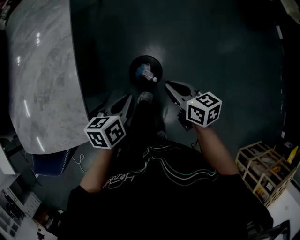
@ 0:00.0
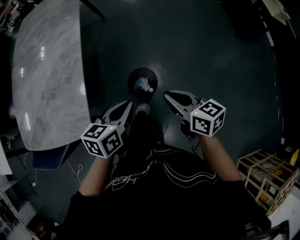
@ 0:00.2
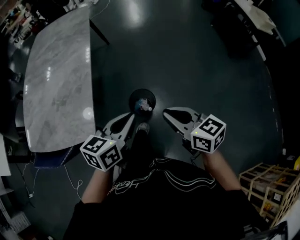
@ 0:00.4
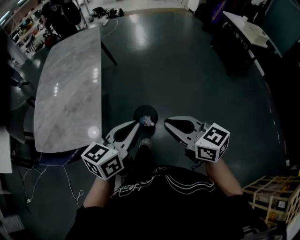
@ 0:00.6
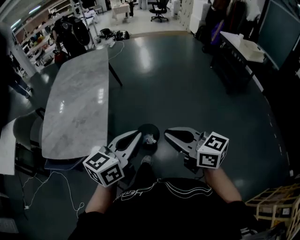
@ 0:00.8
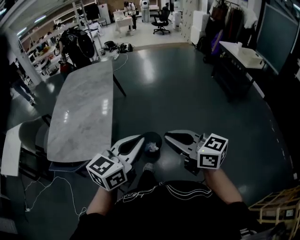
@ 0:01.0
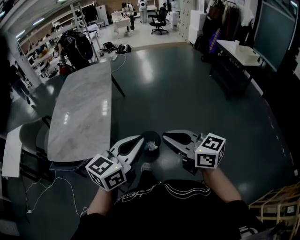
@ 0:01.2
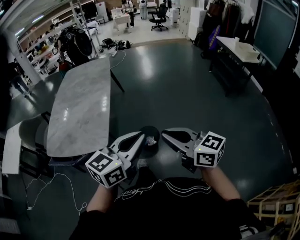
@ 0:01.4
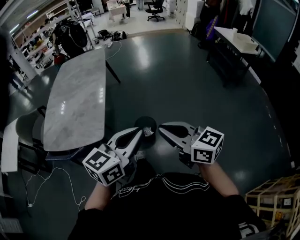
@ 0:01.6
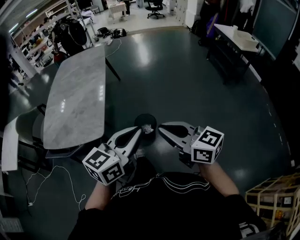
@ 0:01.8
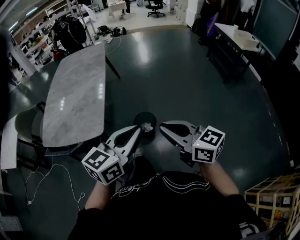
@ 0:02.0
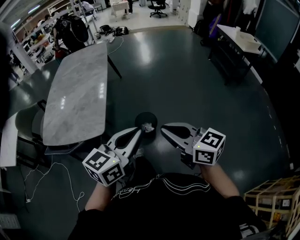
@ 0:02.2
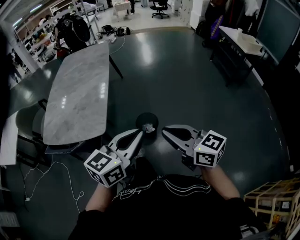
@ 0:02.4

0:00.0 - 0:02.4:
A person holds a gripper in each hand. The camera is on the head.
0:00.0 - 0:01.2: The grippers both shift upward and backward by approximately 40 cm. The left gripper tilts its fingers roughly 30 degrees upward. Meanwhile the right gripper turns by about 40 degrees.
0:01.2 - 0:02.4: The right gripper shifts by approximately 5 cm.

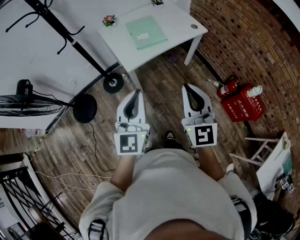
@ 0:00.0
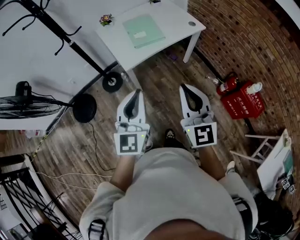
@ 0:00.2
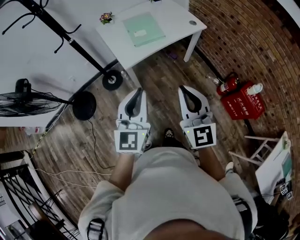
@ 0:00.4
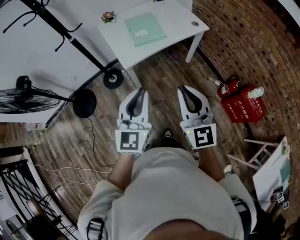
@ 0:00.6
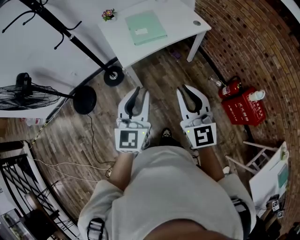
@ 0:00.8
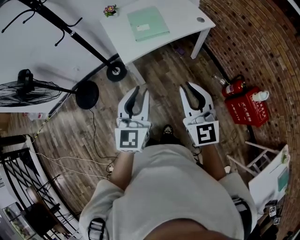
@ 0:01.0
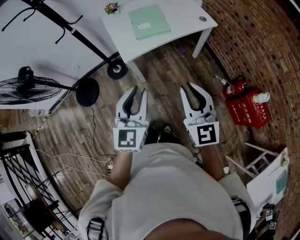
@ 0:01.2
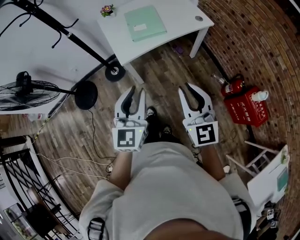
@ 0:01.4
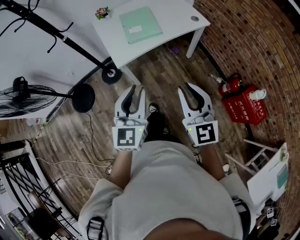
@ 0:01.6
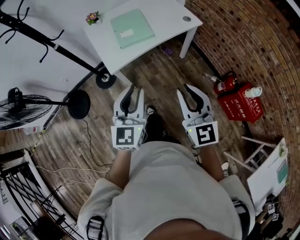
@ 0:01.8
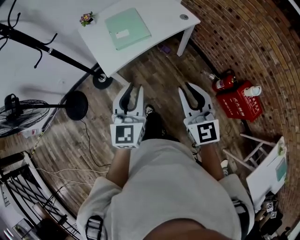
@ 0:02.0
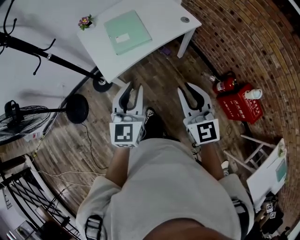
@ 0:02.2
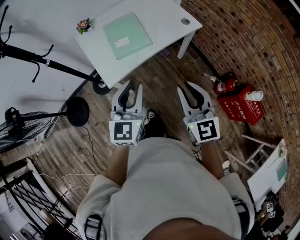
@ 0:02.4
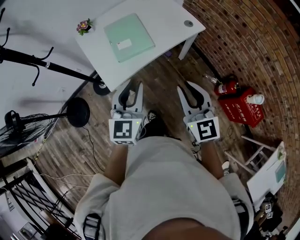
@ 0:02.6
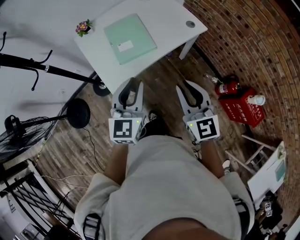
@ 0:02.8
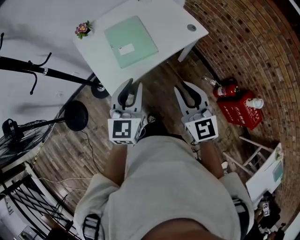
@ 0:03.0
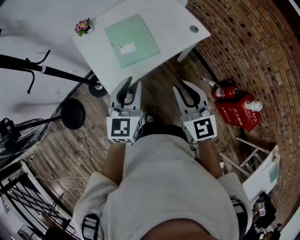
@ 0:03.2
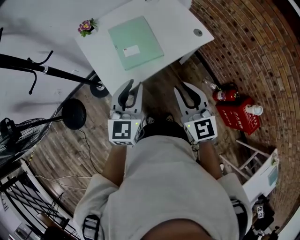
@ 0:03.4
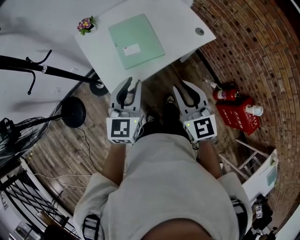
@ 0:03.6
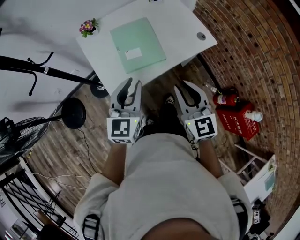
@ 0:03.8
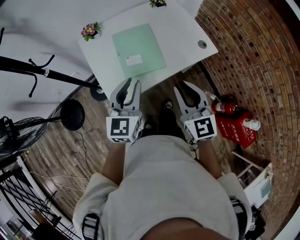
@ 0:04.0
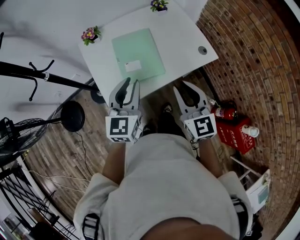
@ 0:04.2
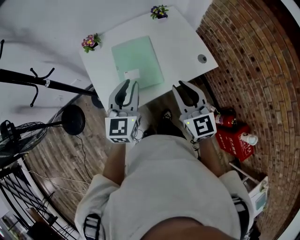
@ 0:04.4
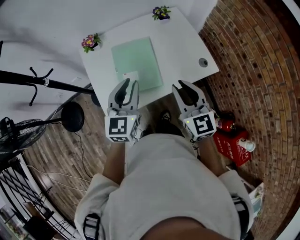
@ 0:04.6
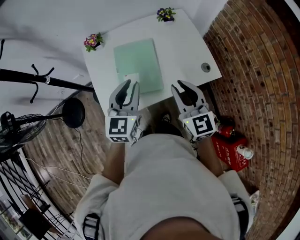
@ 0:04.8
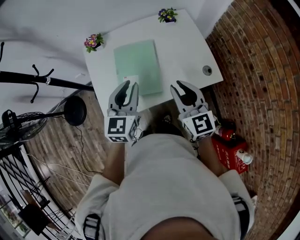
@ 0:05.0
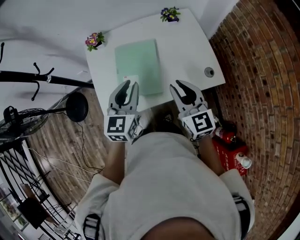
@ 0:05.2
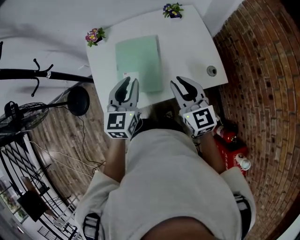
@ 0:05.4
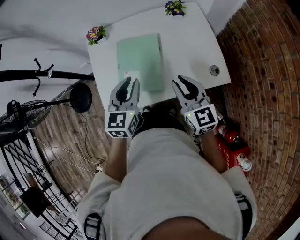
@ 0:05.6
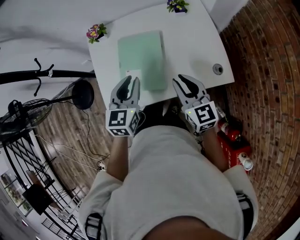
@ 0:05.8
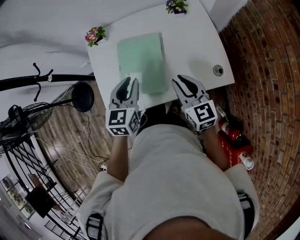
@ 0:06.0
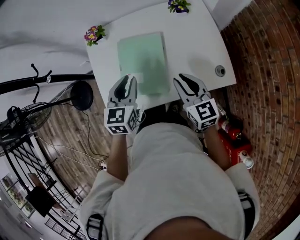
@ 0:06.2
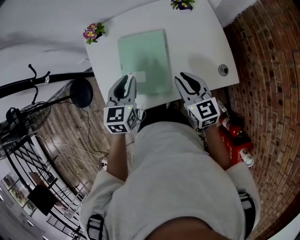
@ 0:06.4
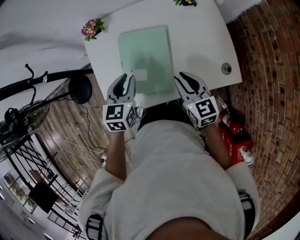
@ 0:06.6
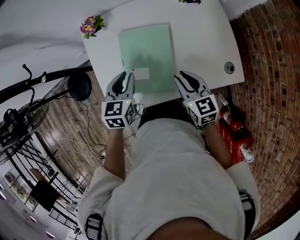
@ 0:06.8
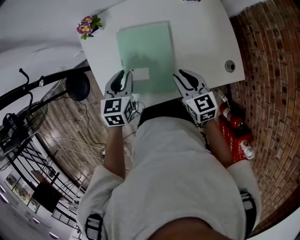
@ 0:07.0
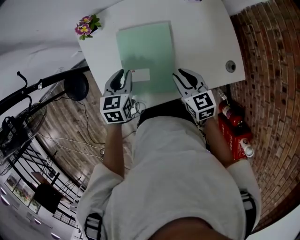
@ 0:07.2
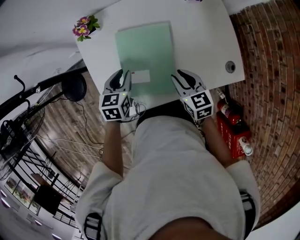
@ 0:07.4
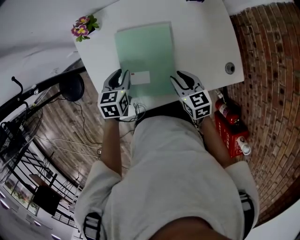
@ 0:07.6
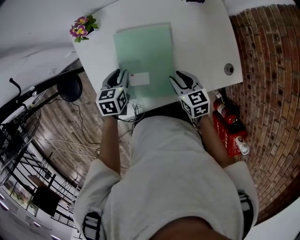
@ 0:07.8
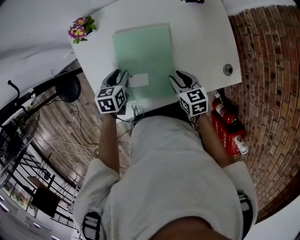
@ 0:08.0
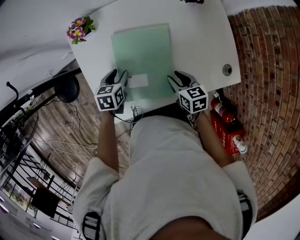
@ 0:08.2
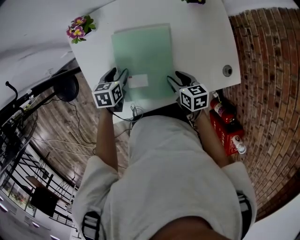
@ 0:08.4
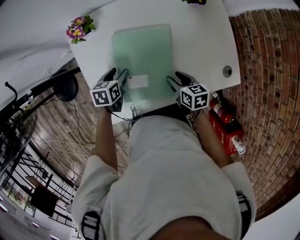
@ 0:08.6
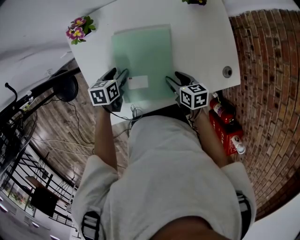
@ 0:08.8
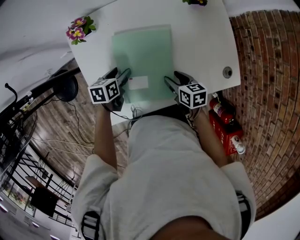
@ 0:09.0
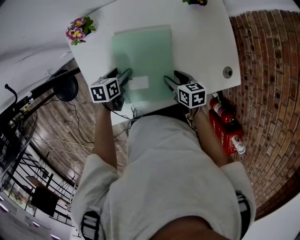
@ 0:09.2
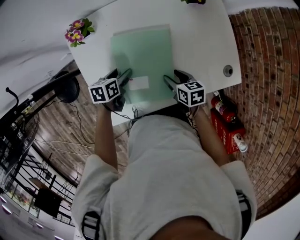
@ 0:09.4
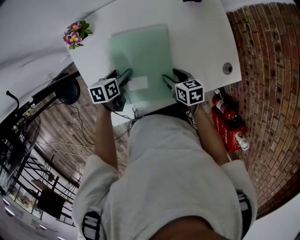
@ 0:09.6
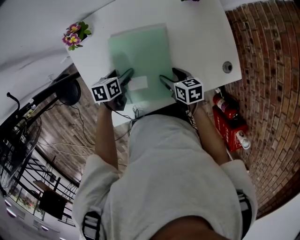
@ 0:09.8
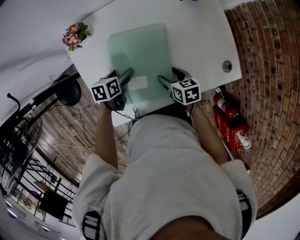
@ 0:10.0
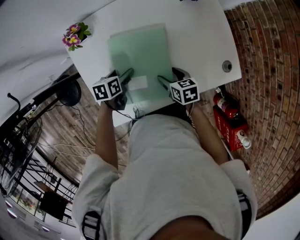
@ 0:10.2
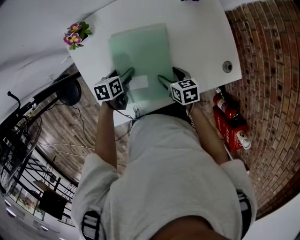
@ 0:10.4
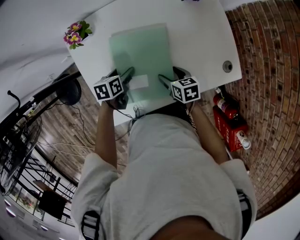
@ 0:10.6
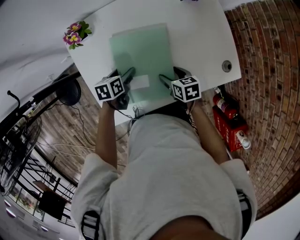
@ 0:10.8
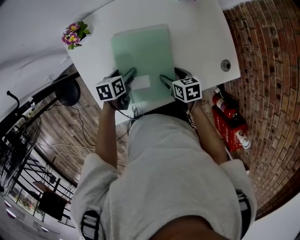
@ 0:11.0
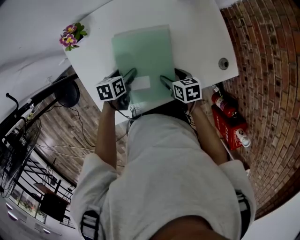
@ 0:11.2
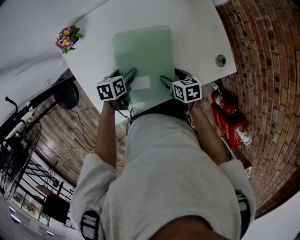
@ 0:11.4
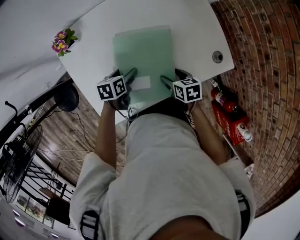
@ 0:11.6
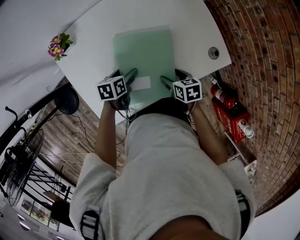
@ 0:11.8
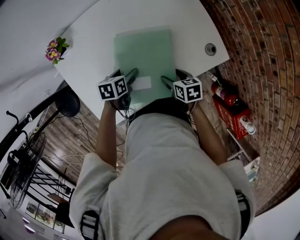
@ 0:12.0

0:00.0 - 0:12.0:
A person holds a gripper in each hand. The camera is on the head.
0:00.0 - 0:01.6: The left gripper shifts about 15 cm to the right, downward and forward. Meanwhile the right gripper goes roughly 10 cm to the right and downward.
0:01.6 - 0:03.0: Both grippers travel together forward, roughly 25 cm.
0:03.0 - 0:04.4: The grippers both shift forward by about 20 cm.
0:04.4 - 0:06.0: The right gripper is displaced forward, downward and to the right by roughly 20 cm, and swivels about 20 degrees; the left gripper travels forward and downward by some 15 cm, and rotates about 20 degrees.
0:06.0 - 0:07.6: The left gripper shifts roughly 20 cm downward, forward and to the left, and turns by some 20 degrees. The right gripper moves downward and forward, roughly 15 cm, and swivels approximately 20 degrees.
0:07.6 - 0:09.0: The grippers both shift downward by about 5 cm. The left gripper swivels roughly 20 degrees, and opens up; the right gripper rotates approximately 20 degrees.
0:09.0 - 0:10.4: The grippers move only a little.
0:10.4 - 0:12.0: The left gripper goes approximately 10 cm to the right, while the right gripper travels to the right and backward by roughly 10 cm.

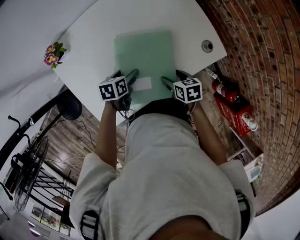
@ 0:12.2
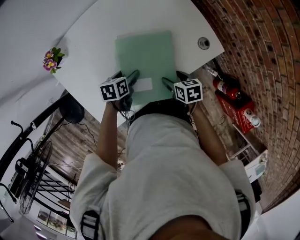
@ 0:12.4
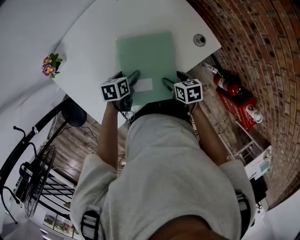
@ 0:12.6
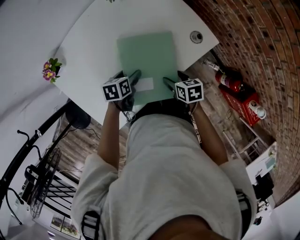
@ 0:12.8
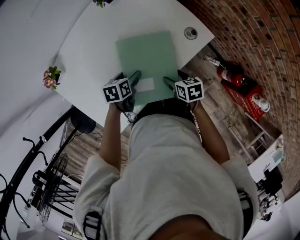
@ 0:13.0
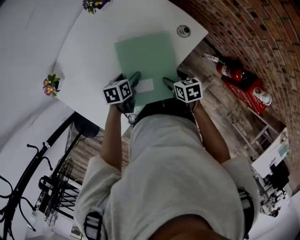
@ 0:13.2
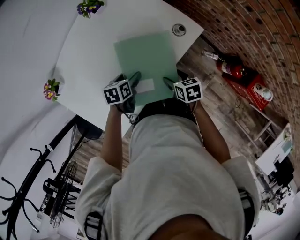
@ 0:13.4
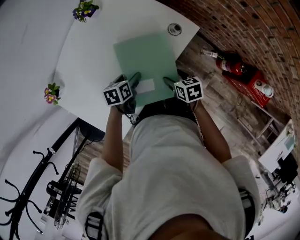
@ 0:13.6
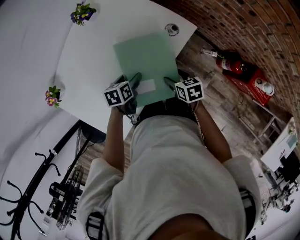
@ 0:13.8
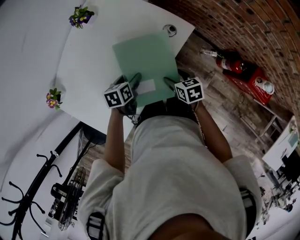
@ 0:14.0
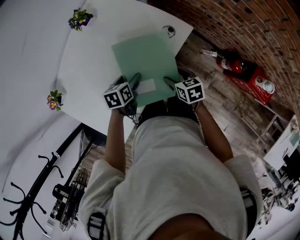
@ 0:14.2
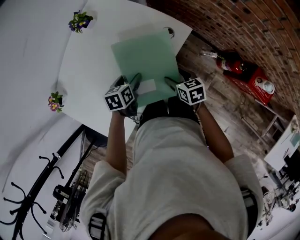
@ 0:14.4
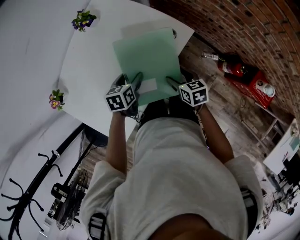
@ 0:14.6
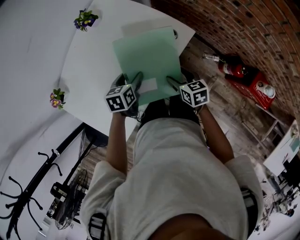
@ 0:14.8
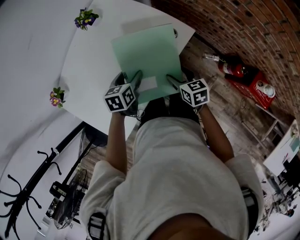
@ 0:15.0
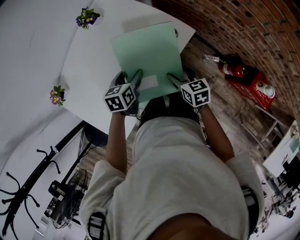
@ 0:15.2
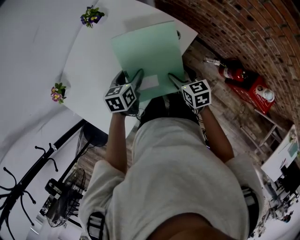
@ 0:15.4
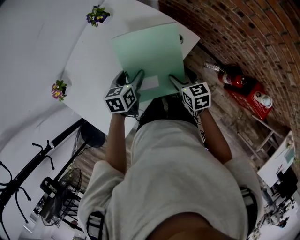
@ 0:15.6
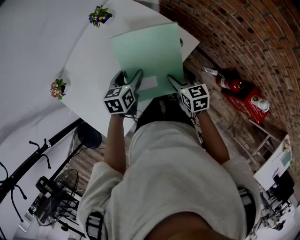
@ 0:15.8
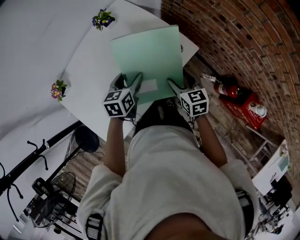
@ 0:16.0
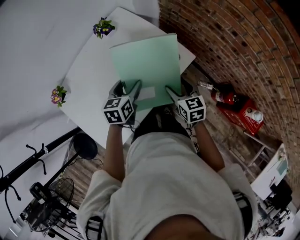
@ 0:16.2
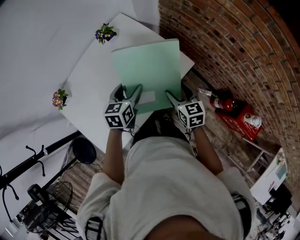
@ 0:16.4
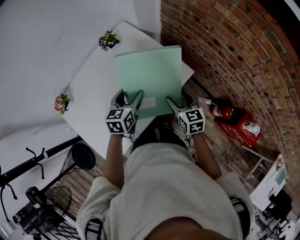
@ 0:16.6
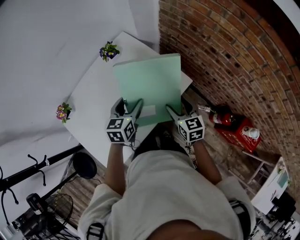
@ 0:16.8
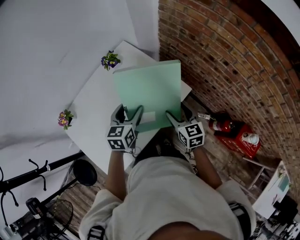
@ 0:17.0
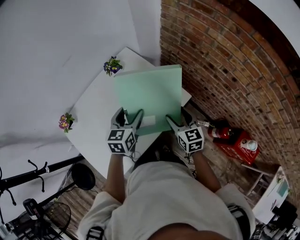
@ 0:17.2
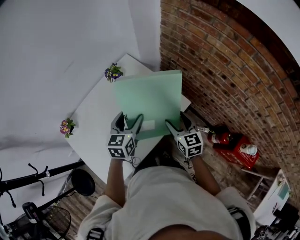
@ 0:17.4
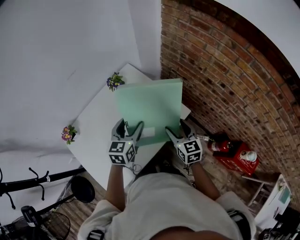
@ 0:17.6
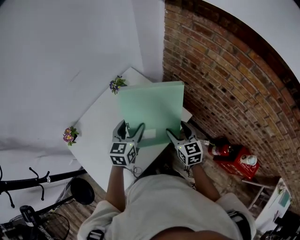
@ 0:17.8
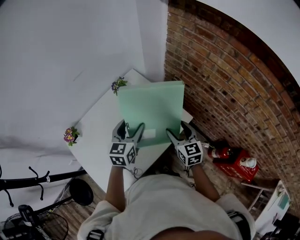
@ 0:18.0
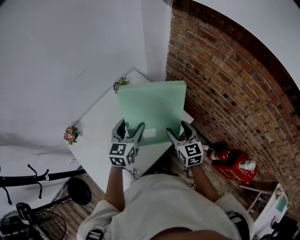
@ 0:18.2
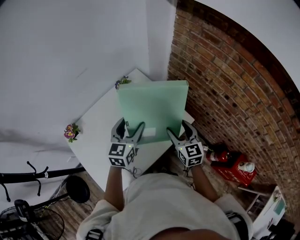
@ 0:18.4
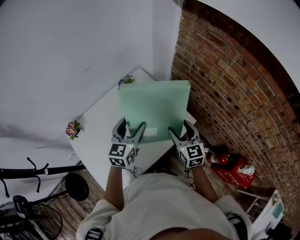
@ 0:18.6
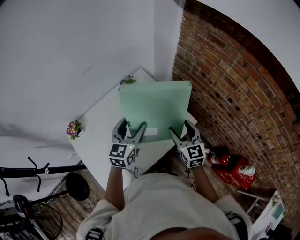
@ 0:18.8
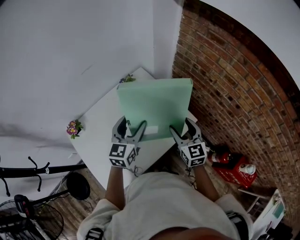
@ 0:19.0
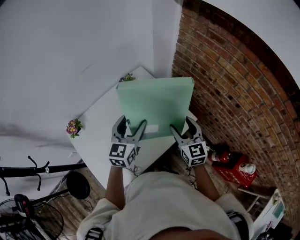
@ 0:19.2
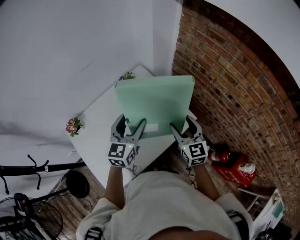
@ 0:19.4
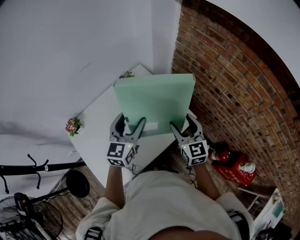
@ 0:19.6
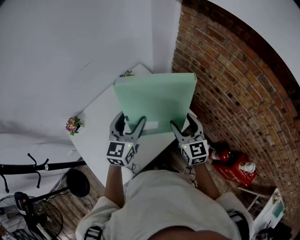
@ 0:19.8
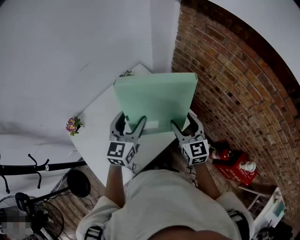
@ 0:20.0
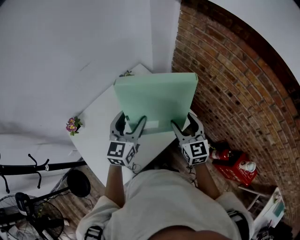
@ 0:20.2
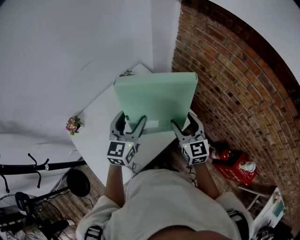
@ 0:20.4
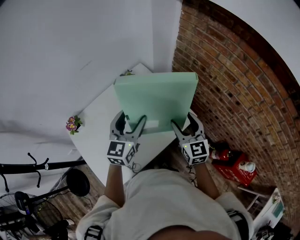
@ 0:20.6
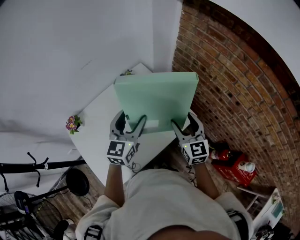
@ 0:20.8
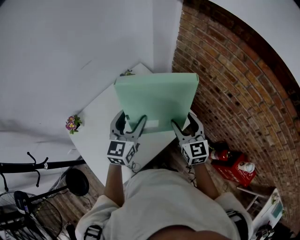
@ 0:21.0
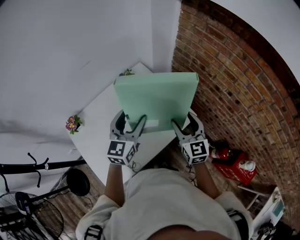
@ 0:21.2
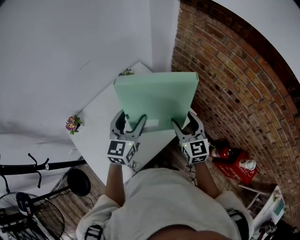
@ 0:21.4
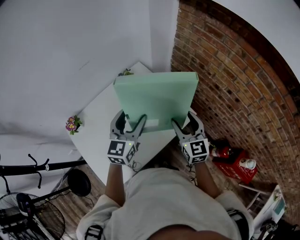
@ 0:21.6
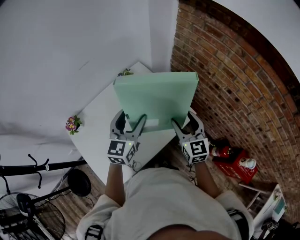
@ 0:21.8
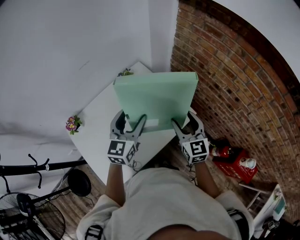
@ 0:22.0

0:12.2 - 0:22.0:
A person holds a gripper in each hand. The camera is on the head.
0:12.2 - 0:13.6: Both grippers travel together to the right, approximately 10 cm.
0:13.6 - 0:15.0: The two grippers go about 5 cm upward.
0:15.0 - 0:16.4: Both grippers move upward, approximately 10 cm.
0:16.4 - 0:17.8: The two grippers go some 10 cm upward.
0:17.8 - 0:19.2: Both grippers travel together upward, some 5 cm.
0:19.2 - 0:20.6: The grippers stay close to where they were, moving slightly.
0:20.6 - 0:22.0: The two grippers keep their place.
